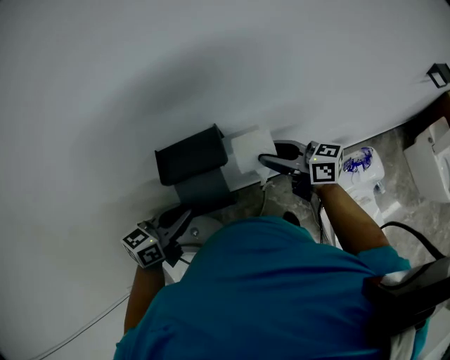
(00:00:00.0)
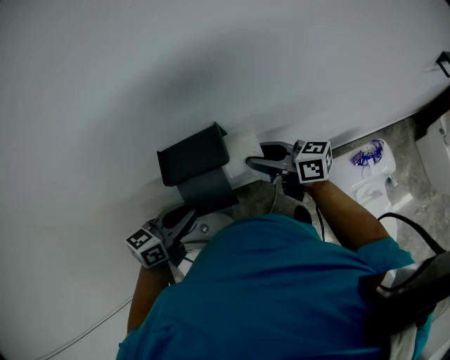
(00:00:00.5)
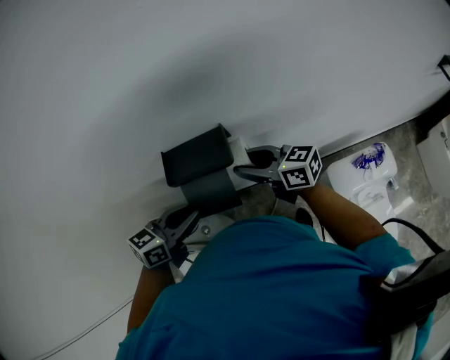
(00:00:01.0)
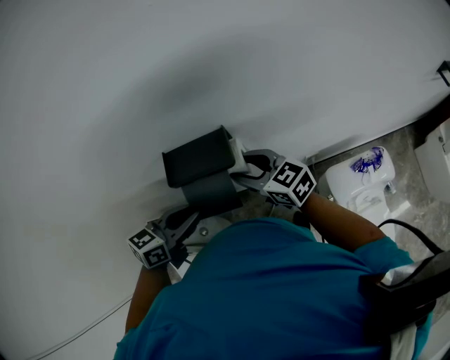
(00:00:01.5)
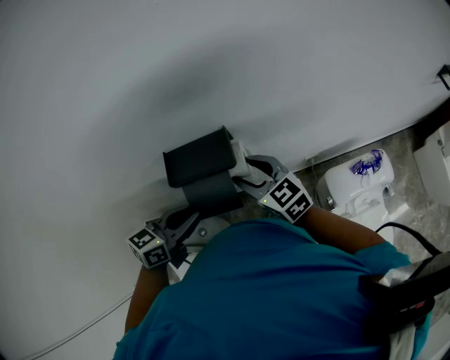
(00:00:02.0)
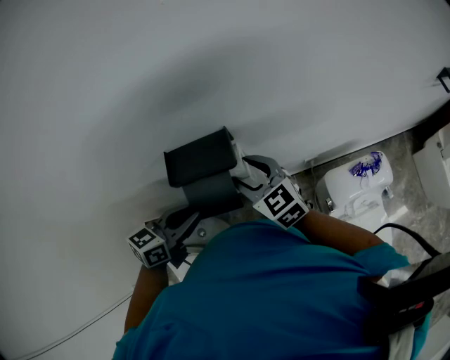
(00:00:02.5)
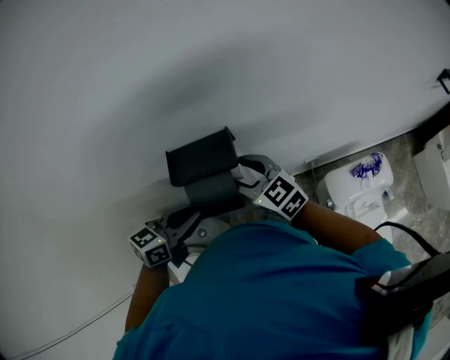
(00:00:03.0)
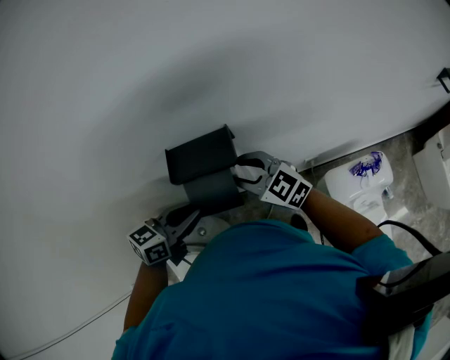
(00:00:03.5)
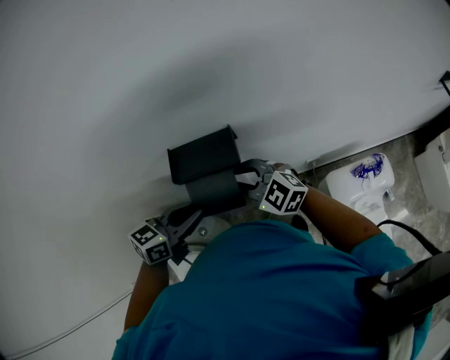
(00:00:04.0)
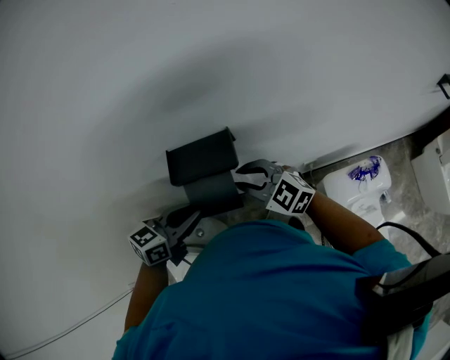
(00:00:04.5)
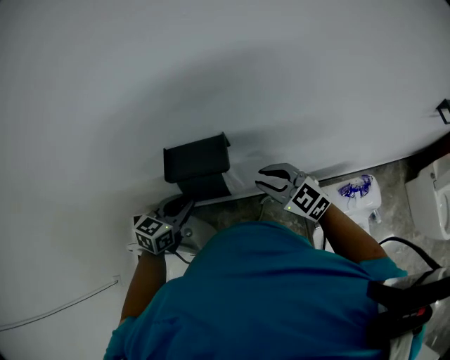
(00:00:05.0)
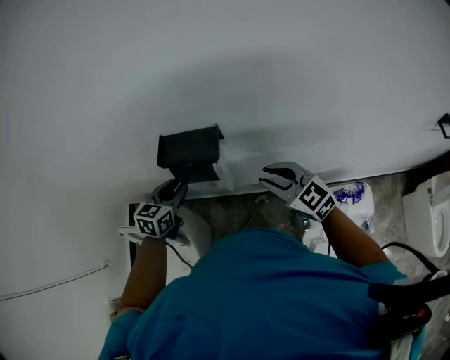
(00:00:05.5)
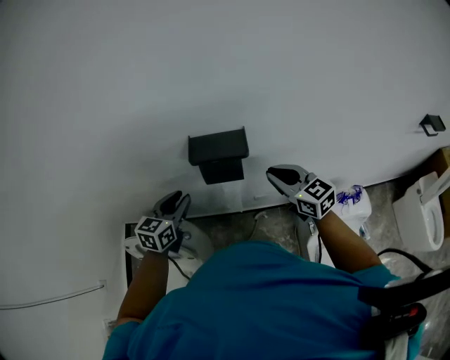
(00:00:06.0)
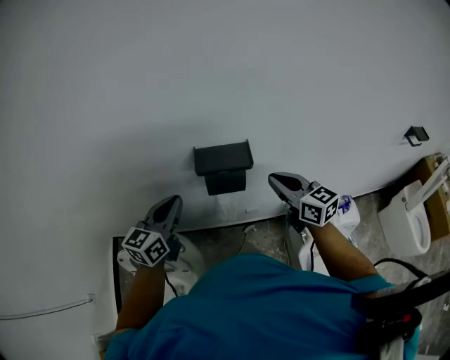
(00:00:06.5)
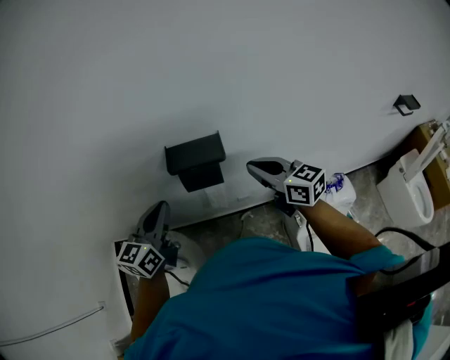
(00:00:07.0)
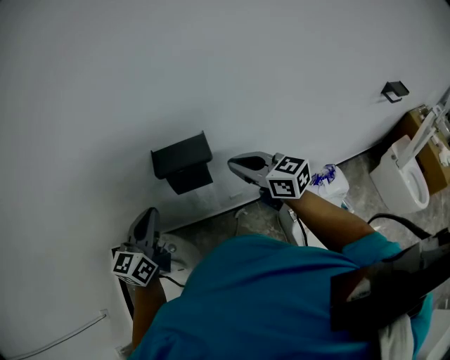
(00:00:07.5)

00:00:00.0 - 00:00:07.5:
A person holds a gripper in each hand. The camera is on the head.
00:00:00.0 - 00:00:02.0: The right gripper travels to the left by approximately 10 cm, and swivels roughly 30 degrees.
00:00:02.0 - 00:00:04.0: The right gripper moves approximately 5 cm, rotates some 30 degrees, and closes its fingers.
00:00:04.0 - 00:00:05.5: The right gripper moves to the right, some 15 cm. The left gripper moves approximately 5 cm, and swivels roughly 30 degrees.
00:00:05.5 - 00:00:07.5: The right gripper travels upward and to the left by roughly 10 cm, rotates about 20 degrees, and closes its fingers. The left gripper moves upward, backward and to the left, some 15 cm, and swivels about 30 degrees.

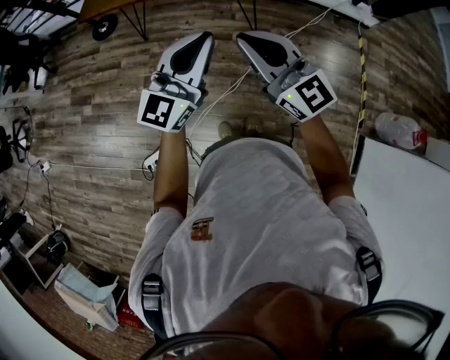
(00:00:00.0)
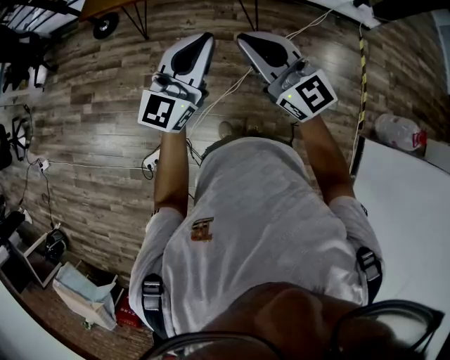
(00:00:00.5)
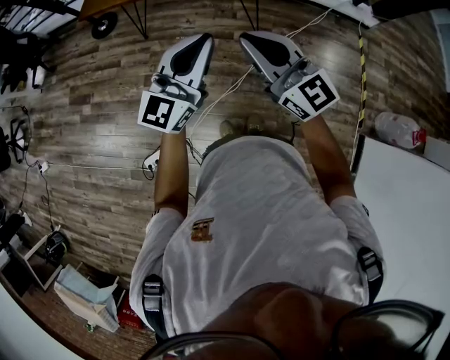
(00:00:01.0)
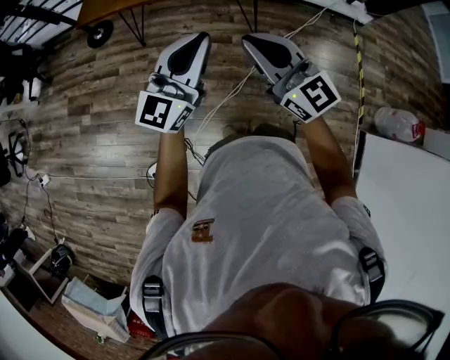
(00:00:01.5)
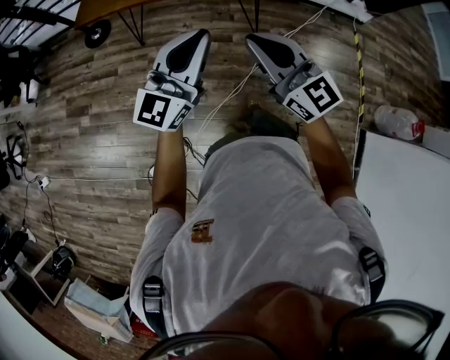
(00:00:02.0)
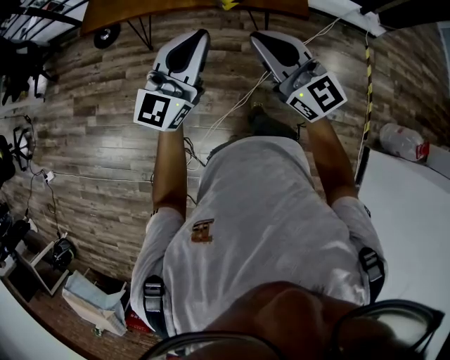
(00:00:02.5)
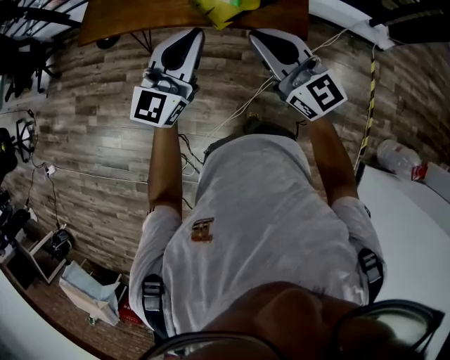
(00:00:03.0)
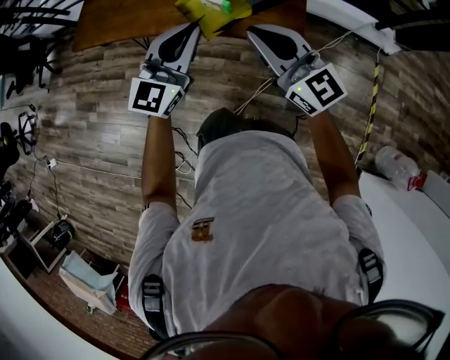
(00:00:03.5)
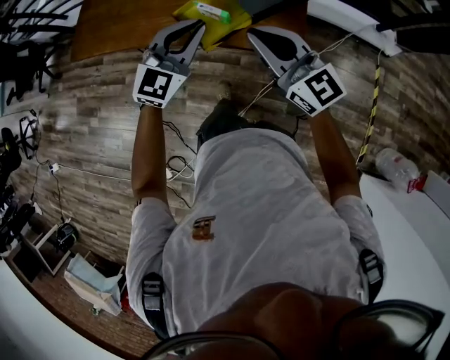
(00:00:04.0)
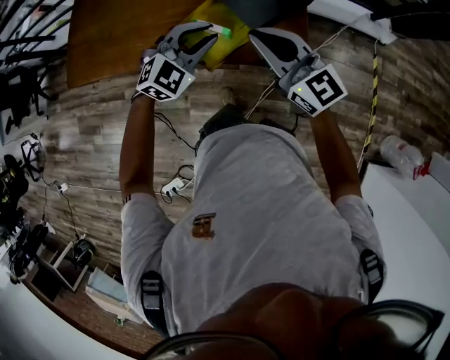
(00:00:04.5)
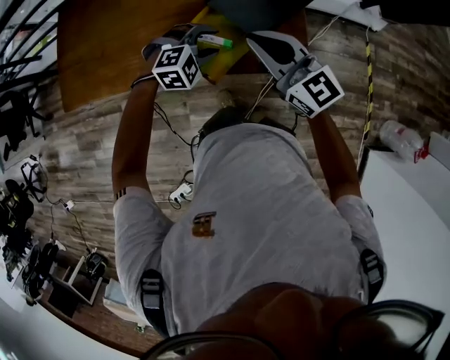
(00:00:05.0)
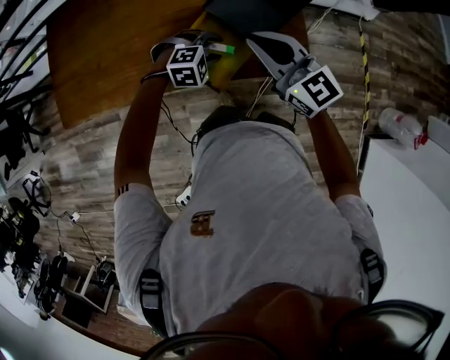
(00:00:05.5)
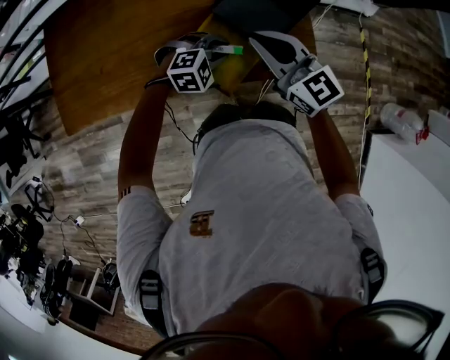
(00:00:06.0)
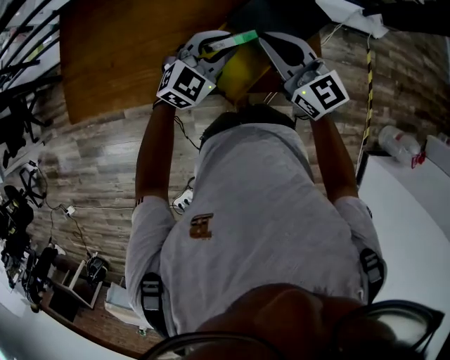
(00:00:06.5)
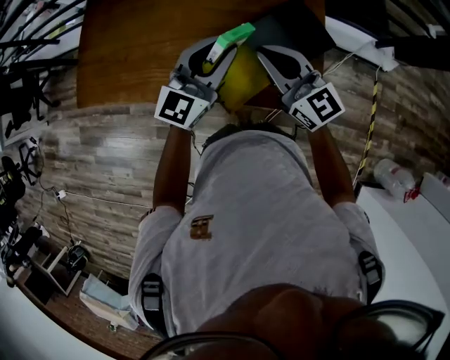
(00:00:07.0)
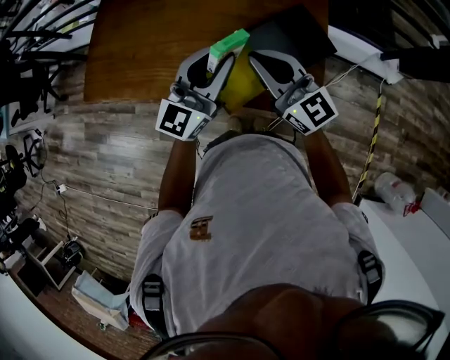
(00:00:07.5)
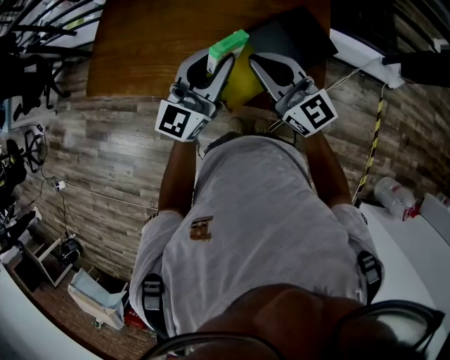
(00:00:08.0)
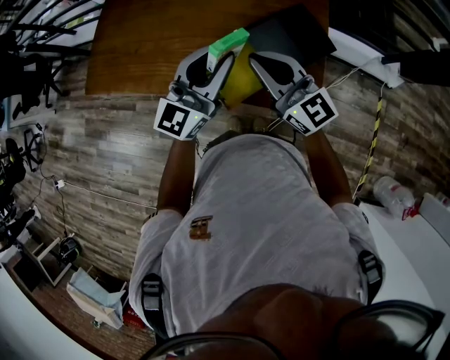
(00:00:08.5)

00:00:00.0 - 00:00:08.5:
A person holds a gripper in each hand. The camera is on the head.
00:00:00.0 - 00:00:02.0: The grippers both shift to the left and forward by some 15 cm.
00:00:02.0 - 00:00:04.0: Both grippers are carried forward and to the right, some 50 cm. The left gripper rotates roughly 30 degrees.
00:00:04.0 - 00:00:06.5: The right gripper ends up some 30 cm from where it was, while the left gripper ends up about 25 cm from where it was, changes its angle by approximately 30 degrees, and opens and closes again.
00:00:06.5 - 00:00:08.5: The right gripper moves upward and backward, about 10 cm, while the left gripper moves upward, about 15 cm, and points its fingers about 30 degrees further upward.

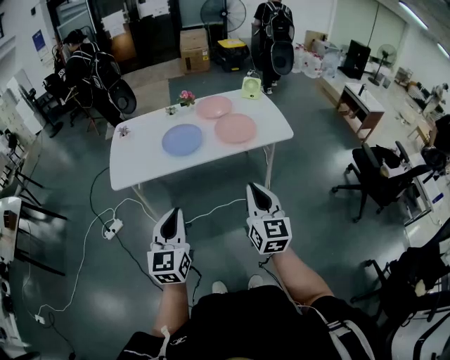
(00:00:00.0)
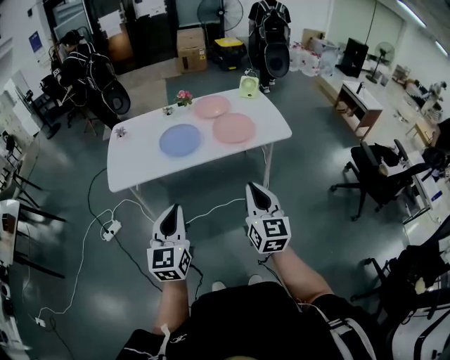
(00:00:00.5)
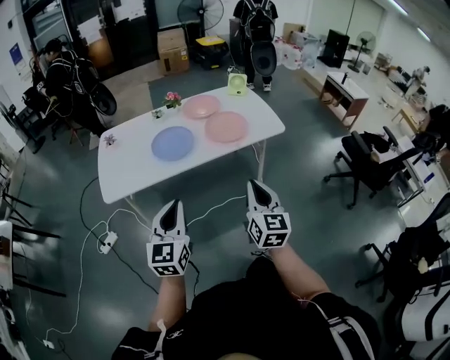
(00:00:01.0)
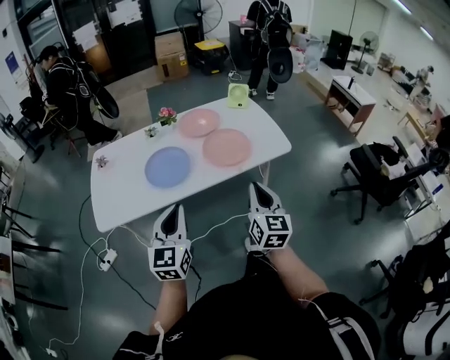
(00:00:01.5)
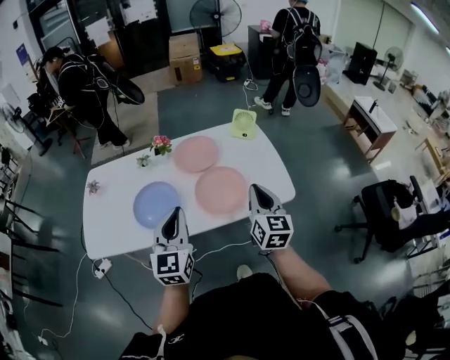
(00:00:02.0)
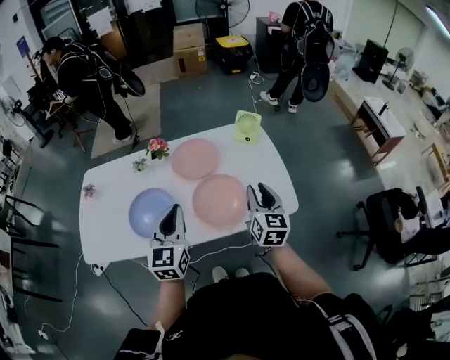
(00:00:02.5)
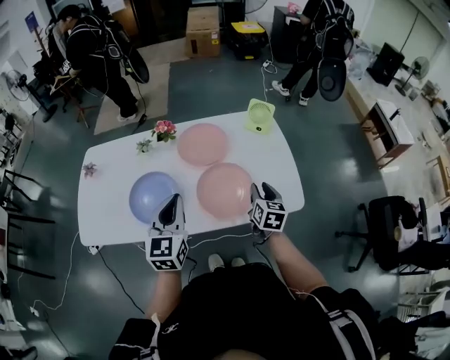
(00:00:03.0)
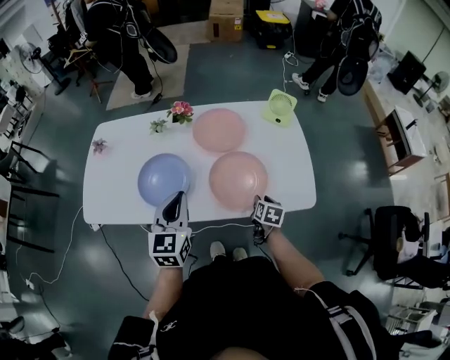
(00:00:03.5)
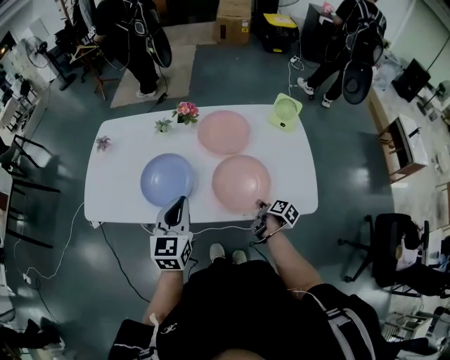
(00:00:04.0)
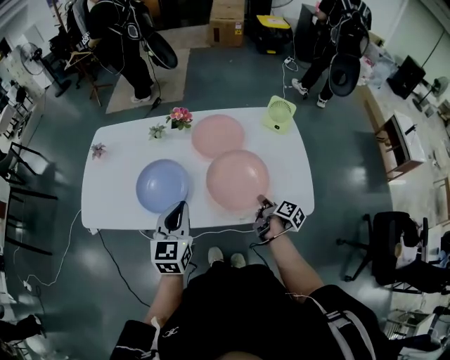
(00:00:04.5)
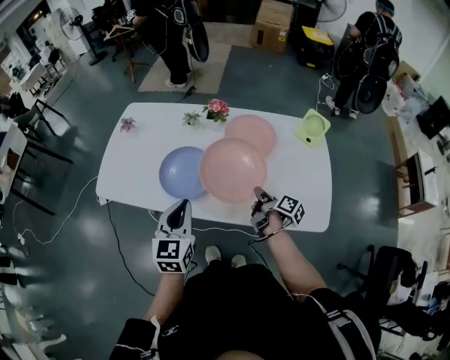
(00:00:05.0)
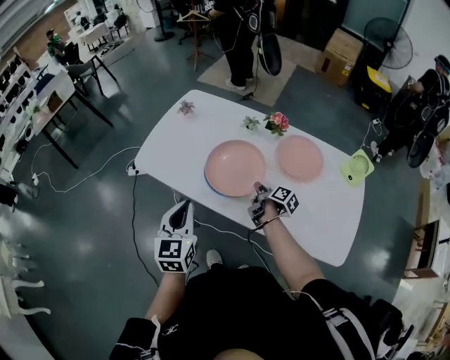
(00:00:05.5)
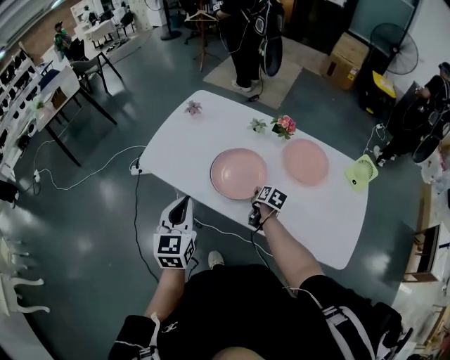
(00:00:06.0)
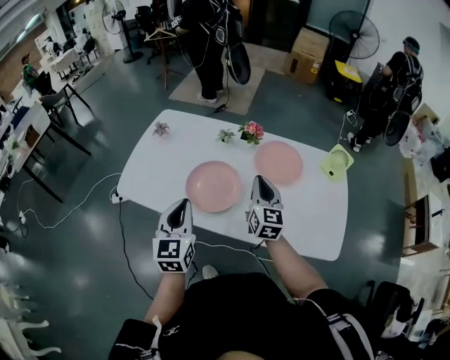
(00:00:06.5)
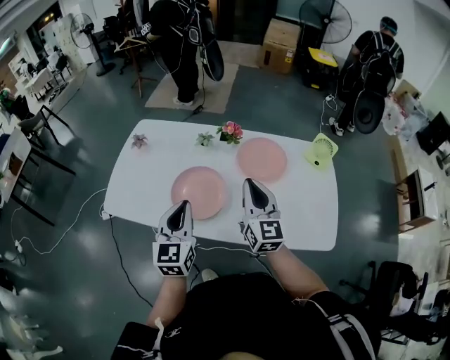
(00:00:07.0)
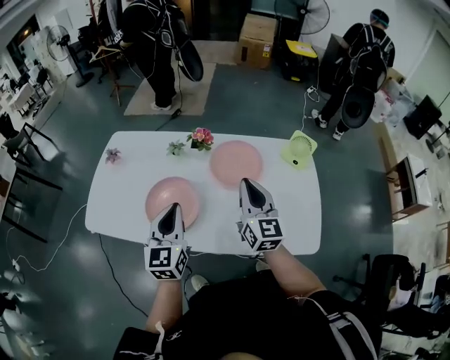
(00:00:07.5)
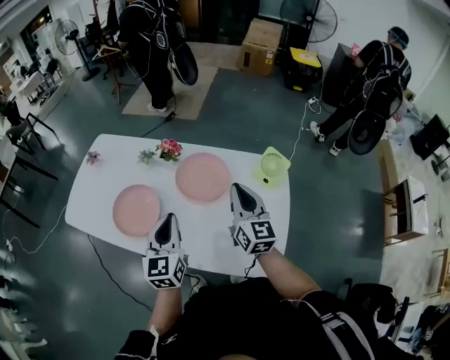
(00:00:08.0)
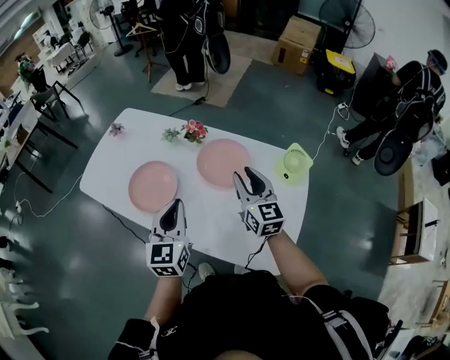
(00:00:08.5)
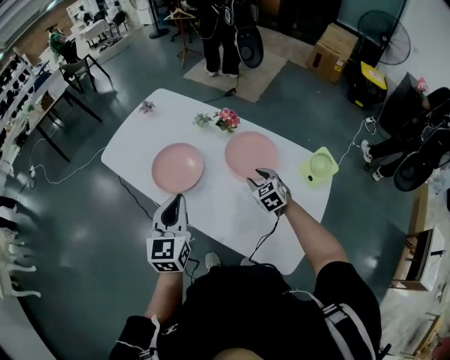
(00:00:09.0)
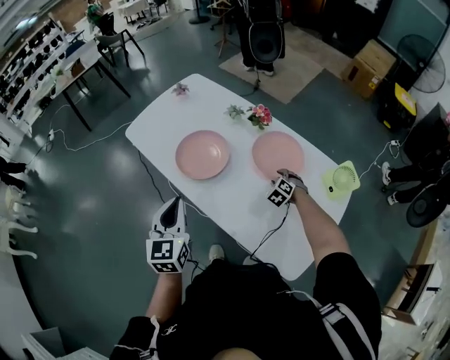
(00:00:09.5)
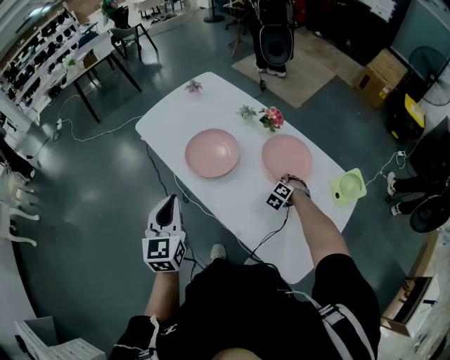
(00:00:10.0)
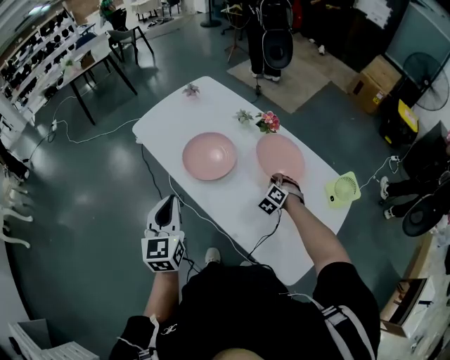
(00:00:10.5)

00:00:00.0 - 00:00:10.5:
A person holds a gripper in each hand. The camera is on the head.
00:00:00.0 - 00:00:02.0: The two grippers travel together, forward, roughly 50 cm.
00:00:02.0 - 00:00:04.0: The left gripper is displaced forward, downward and to the left by some 15 cm; the right gripper shifts about 35 cm downward, and tilts its fingers some 40 degrees downward.
00:00:04.0 - 00:00:06.5: The left gripper moves about 20 cm, and rotates some 20 degrees, while the right gripper moves up and down over approximately 30 cm, changing direction 2 times, and rolls counterclockwise, seen from behind, by approximately 70 degrees.
00:00:06.5 - 00:00:08.5: Both grippers travel together to the right, roughly 30 cm. The right gripper opens its fingers.
00:00:08.5 - 00:00:10.5: The right gripper shifts some 25 cm downward and to the left, and rotates around the line of its fingers by approximately 70 degrees, counterclockwise from behind. Meanwhile the left gripper shifts some 20 cm to the left and backward, and rotates about 30 degrees.
